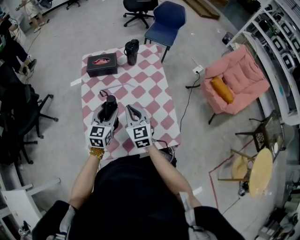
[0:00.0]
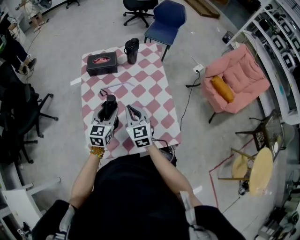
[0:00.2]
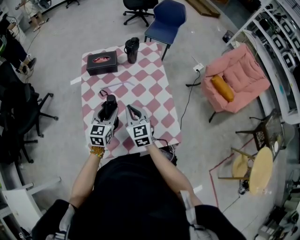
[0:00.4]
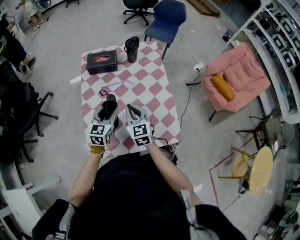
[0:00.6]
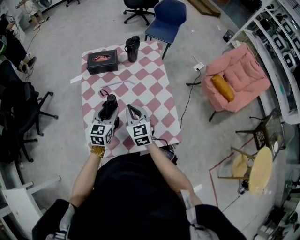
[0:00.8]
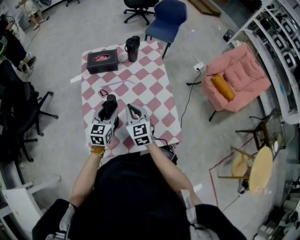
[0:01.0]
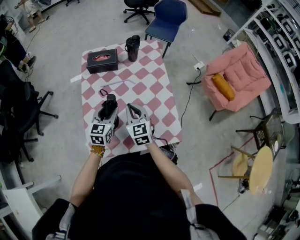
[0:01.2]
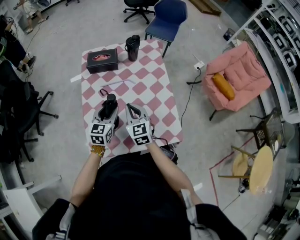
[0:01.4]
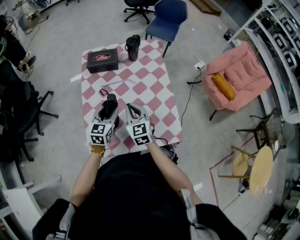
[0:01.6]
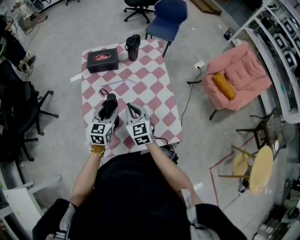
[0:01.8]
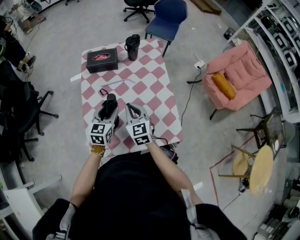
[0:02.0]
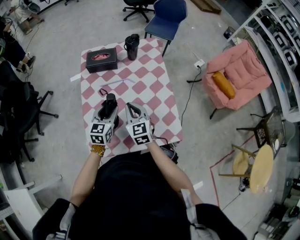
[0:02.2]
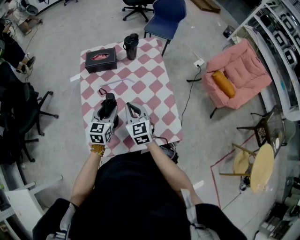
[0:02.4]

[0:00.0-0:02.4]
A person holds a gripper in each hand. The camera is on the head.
0:00.0 to 0:01.2: The grippers make only small movements.
0:01.2 to 0:02.4: Both grippers stay about where they are.

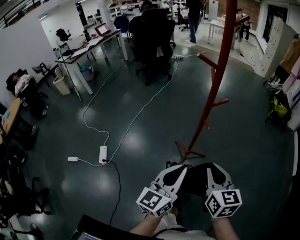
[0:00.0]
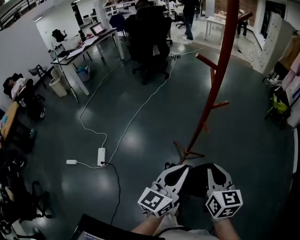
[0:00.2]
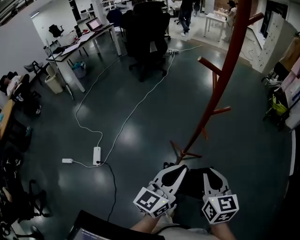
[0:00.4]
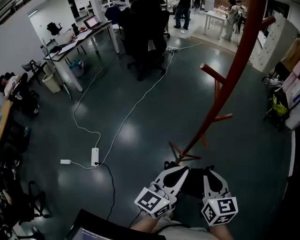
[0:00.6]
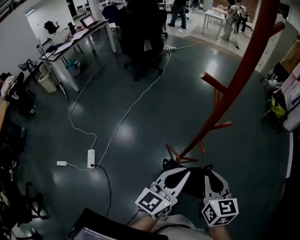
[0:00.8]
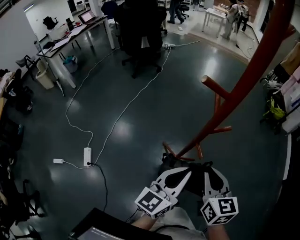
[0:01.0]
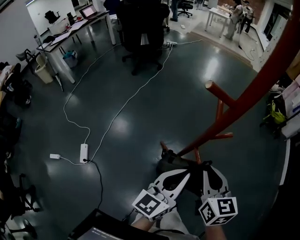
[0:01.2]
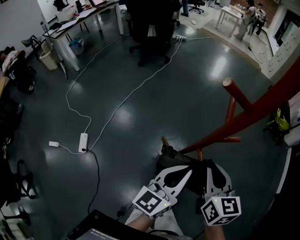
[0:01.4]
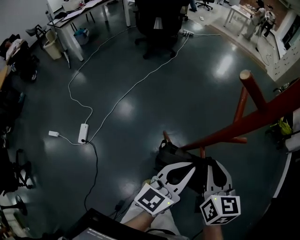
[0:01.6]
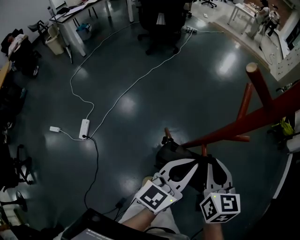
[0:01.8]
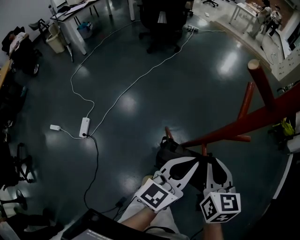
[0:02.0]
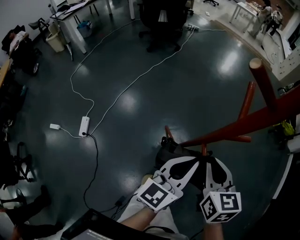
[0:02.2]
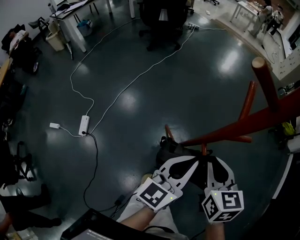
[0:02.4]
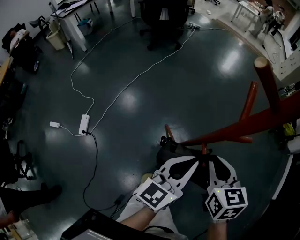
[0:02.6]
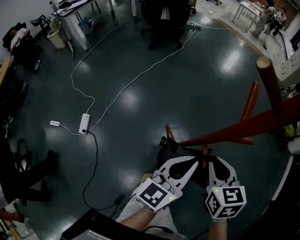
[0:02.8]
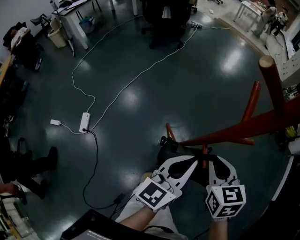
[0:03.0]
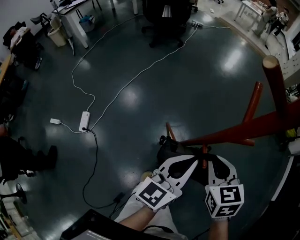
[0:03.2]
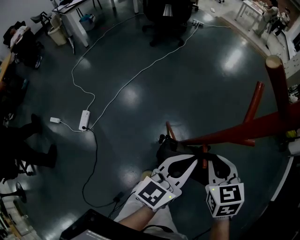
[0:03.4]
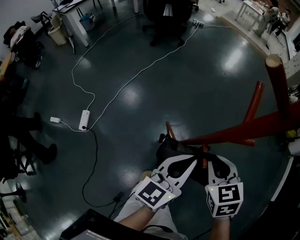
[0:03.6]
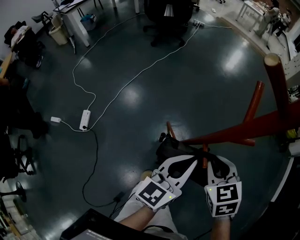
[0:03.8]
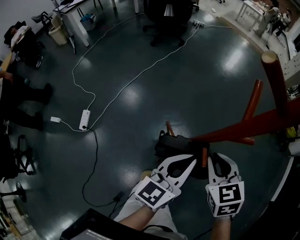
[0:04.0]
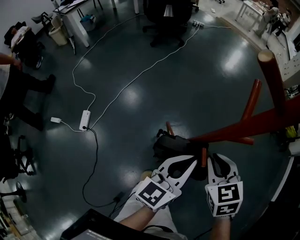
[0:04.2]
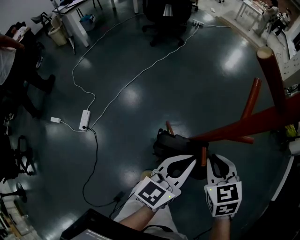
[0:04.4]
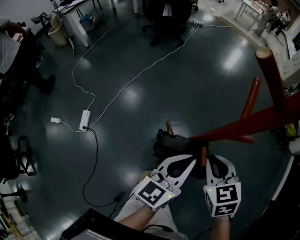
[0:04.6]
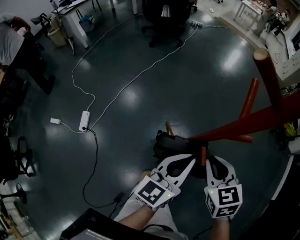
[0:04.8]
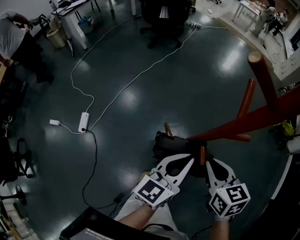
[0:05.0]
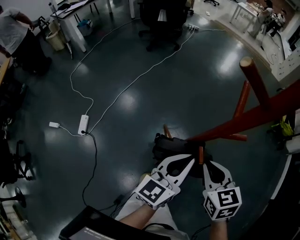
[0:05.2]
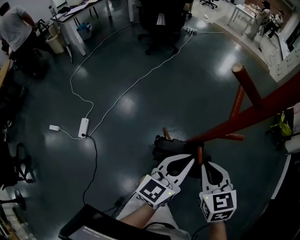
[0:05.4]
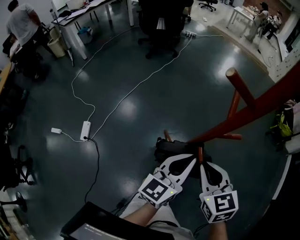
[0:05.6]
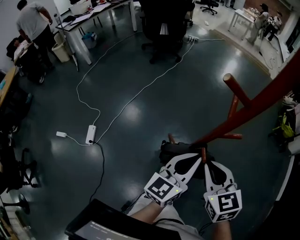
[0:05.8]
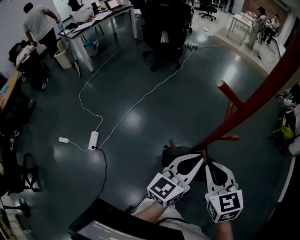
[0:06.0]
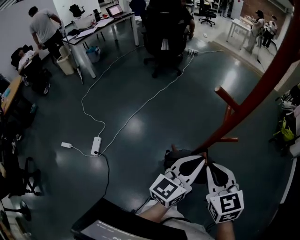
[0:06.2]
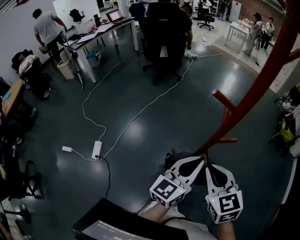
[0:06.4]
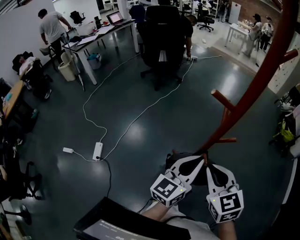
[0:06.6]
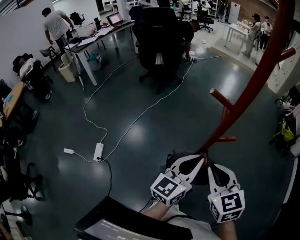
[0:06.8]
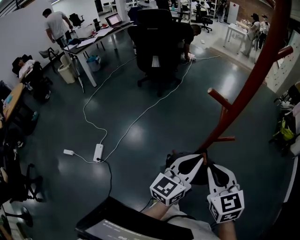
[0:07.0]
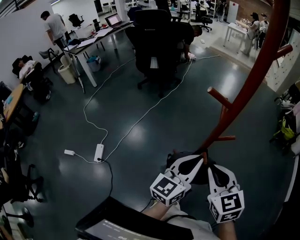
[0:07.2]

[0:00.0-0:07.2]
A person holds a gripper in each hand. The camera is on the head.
0:00.0 to 0:01.4: The two grippers go roughly 25 cm forward.
0:01.4 to 0:02.8: The right gripper moves downward, approximately 5 cm, and turns by about 20 degrees.
0:02.8 to 0:04.4: The grippers move only a little.
0:04.4 to 0:05.8: The left gripper shifts some 5 cm upward, while the right gripper goes approximately 10 cm upward.
0:05.8 to 0:07.2: Both grippers travel together upward, roughly 5 cm.

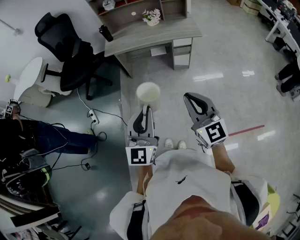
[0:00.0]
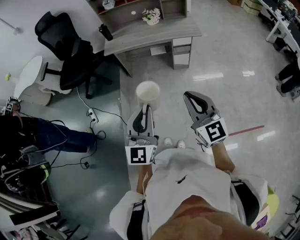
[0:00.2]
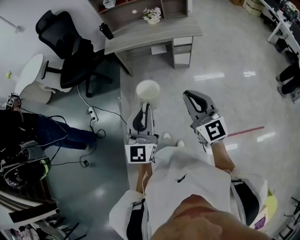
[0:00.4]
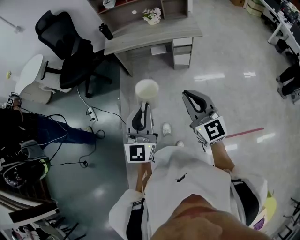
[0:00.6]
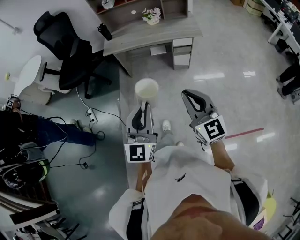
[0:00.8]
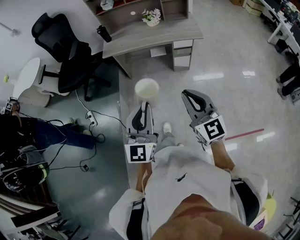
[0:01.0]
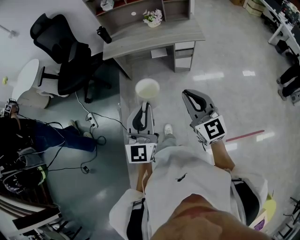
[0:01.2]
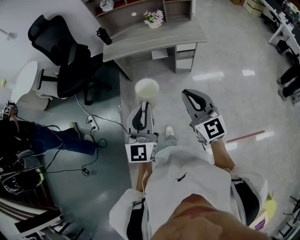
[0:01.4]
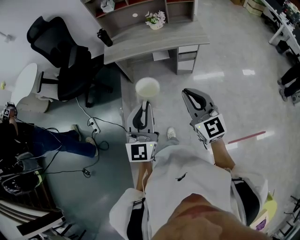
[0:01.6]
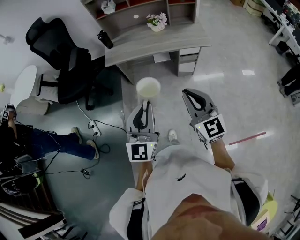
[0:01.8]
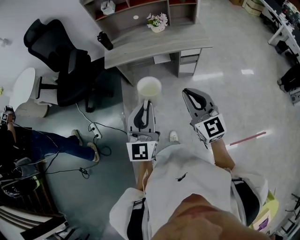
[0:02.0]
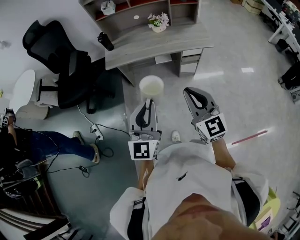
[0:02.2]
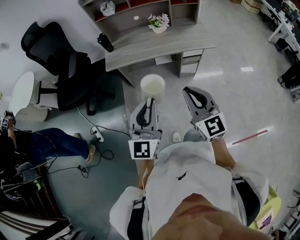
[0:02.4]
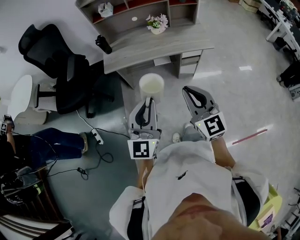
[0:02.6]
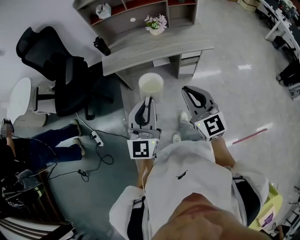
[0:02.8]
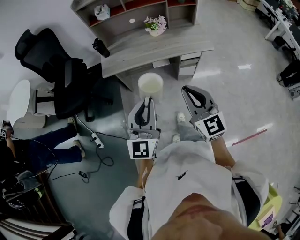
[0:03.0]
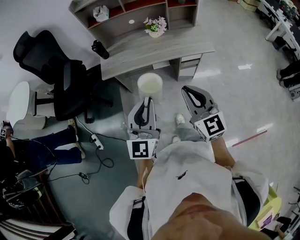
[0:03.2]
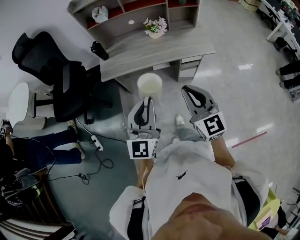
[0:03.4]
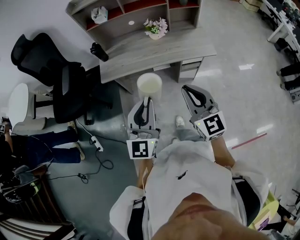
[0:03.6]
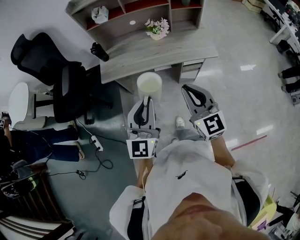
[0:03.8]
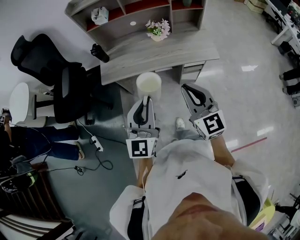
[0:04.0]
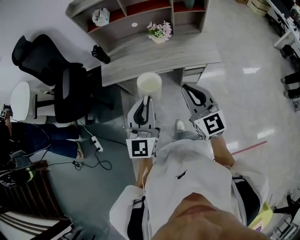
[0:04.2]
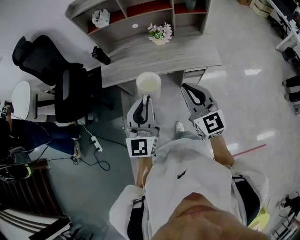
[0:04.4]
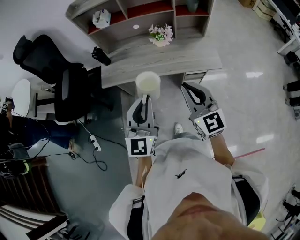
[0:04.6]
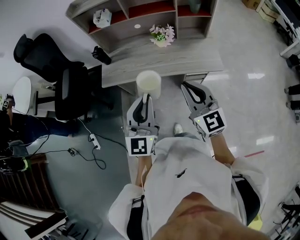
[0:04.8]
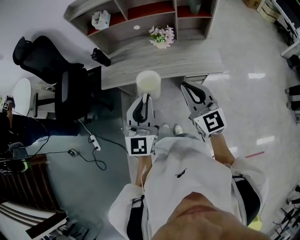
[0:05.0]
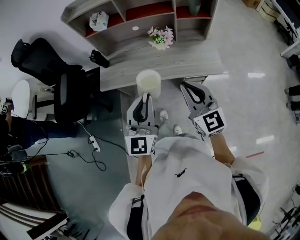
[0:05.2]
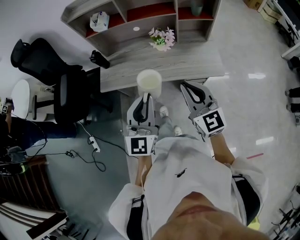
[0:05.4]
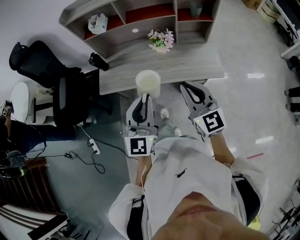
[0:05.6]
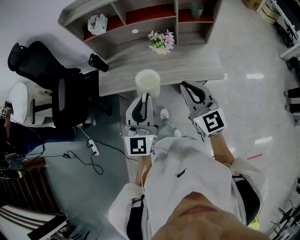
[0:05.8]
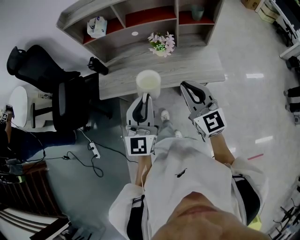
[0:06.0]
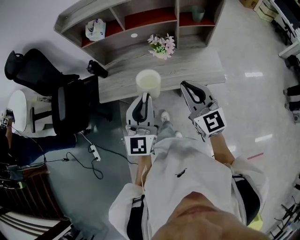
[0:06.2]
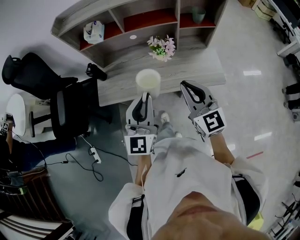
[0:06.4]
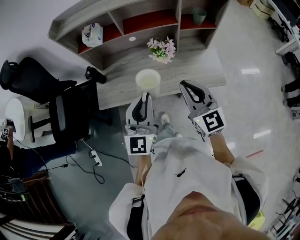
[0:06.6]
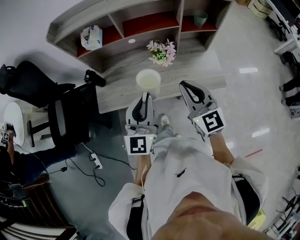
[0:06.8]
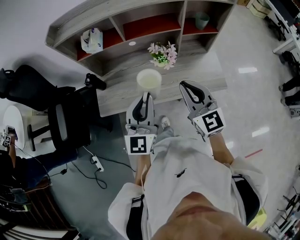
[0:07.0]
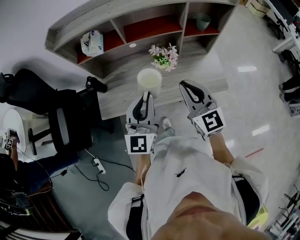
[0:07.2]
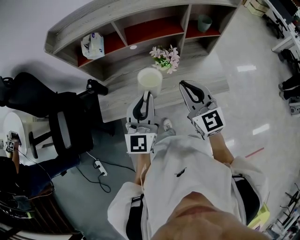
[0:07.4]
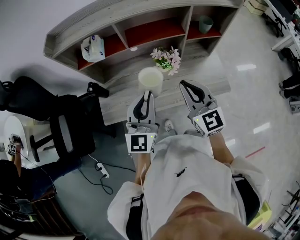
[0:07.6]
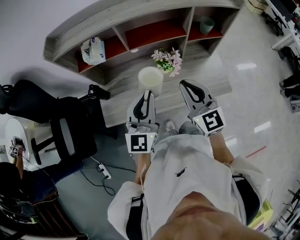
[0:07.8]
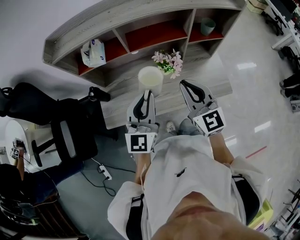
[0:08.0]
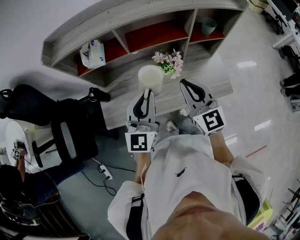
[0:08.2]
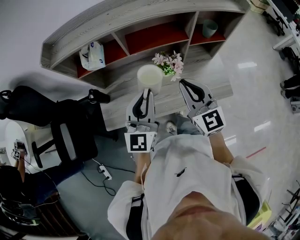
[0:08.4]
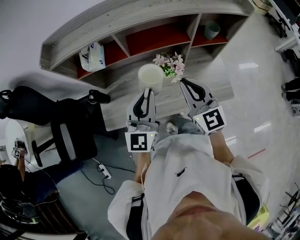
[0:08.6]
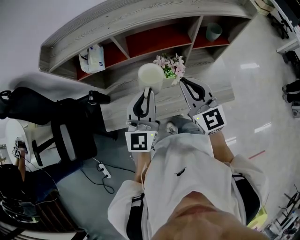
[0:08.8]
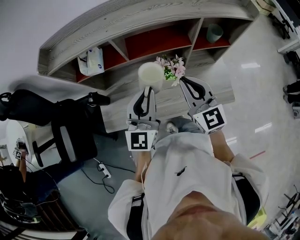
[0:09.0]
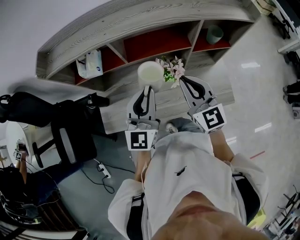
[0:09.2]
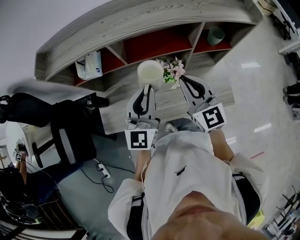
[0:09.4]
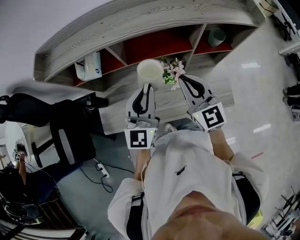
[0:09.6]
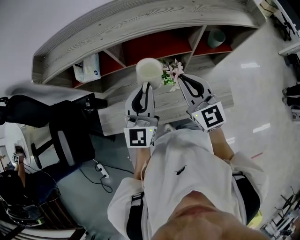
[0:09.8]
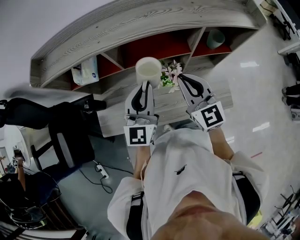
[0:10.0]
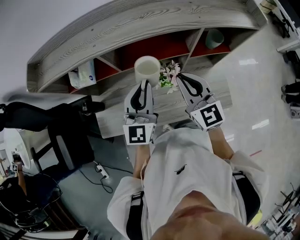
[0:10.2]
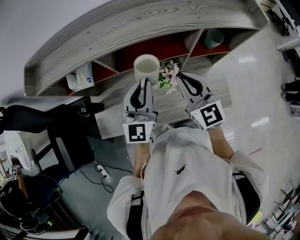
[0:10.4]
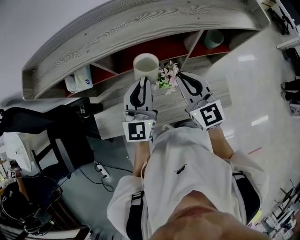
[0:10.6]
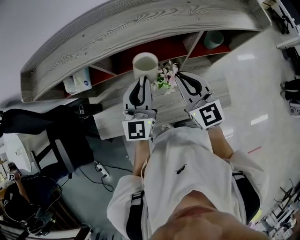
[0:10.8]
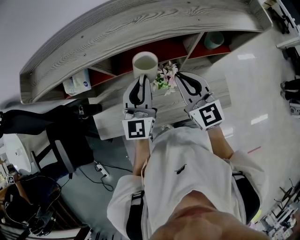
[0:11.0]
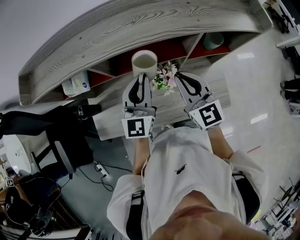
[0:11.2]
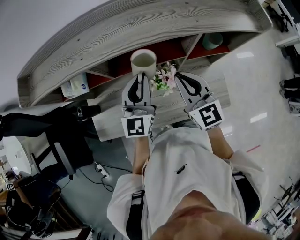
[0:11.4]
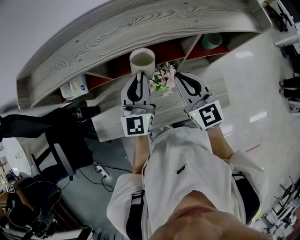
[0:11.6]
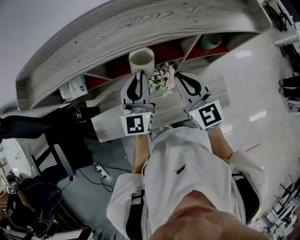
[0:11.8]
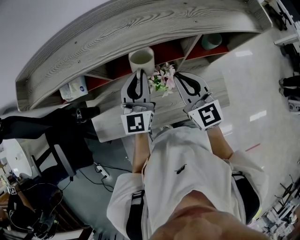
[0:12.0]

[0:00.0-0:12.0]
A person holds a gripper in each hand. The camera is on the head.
0:00.0 to 0:01.6: The two grippers go approximately 15 cm forward.
0:01.6 to 0:03.0: Both grippers move forward, roughly 15 cm.
0:03.0 to 0:04.4: The two grippers go approximately 15 cm forward.
0:04.4 to 0:06.0: Both grippers travel together forward, approximately 15 cm.
0:06.0 to 0:07.6: Both grippers move forward, about 15 cm.
0:07.6 to 0:09.0: Both grippers move forward, some 10 cm.
0:09.0 to 0:10.4: The grippers both shift forward by approximately 10 cm.
0:10.4 to 0:12.0: The left gripper is displaced forward by some 5 cm.

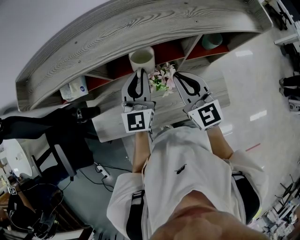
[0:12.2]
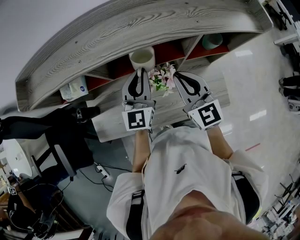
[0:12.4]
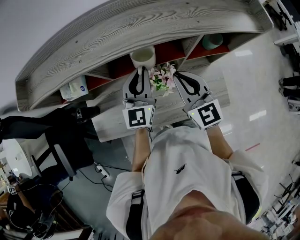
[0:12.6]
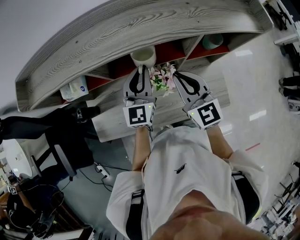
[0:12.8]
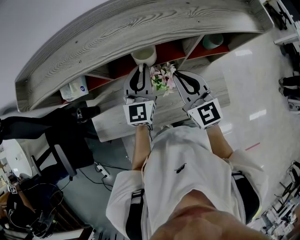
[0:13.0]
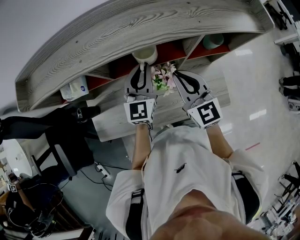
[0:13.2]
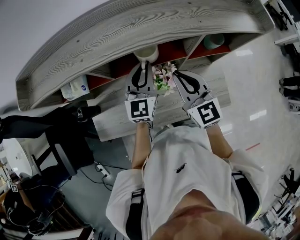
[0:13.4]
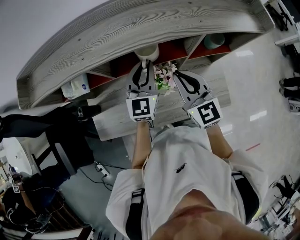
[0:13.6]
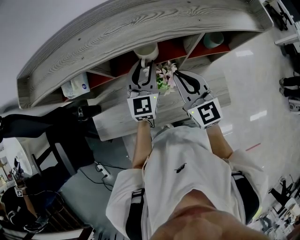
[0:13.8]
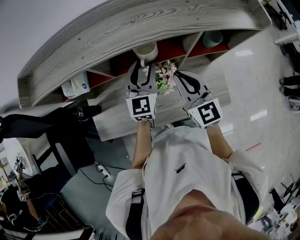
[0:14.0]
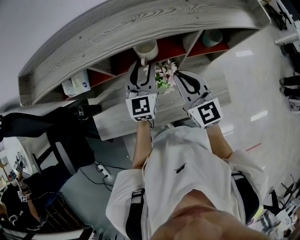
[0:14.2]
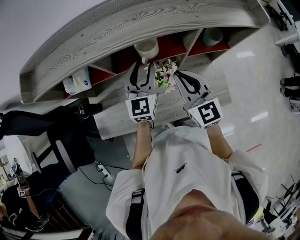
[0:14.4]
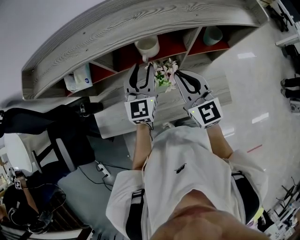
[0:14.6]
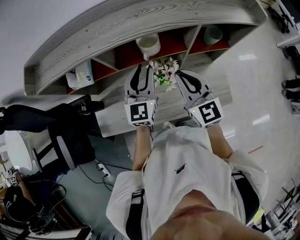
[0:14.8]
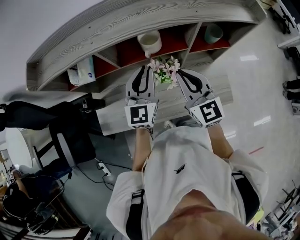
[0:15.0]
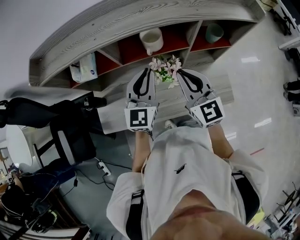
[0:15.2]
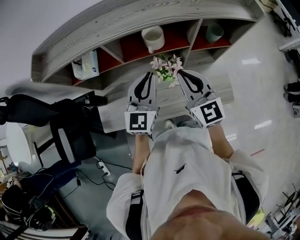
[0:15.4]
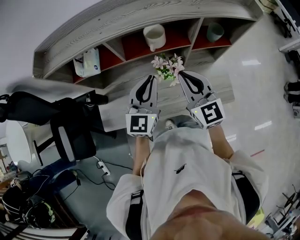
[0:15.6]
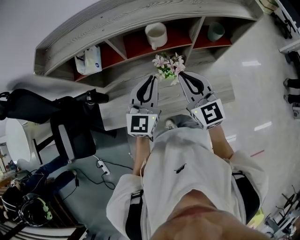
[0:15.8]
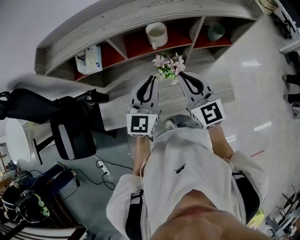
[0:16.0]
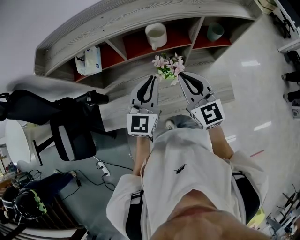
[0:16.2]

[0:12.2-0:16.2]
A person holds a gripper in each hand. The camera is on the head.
0:12.2 to 0:13.6: There are only small adjustments of the grippers.
0:13.6 to 0:14.8: The left gripper changes place by roughly 5 cm.
0:14.8 to 0:16.2: The left gripper heads backward, covering about 10 cm. Meanwhile the right gripper is displaced backward by approximately 5 cm.
